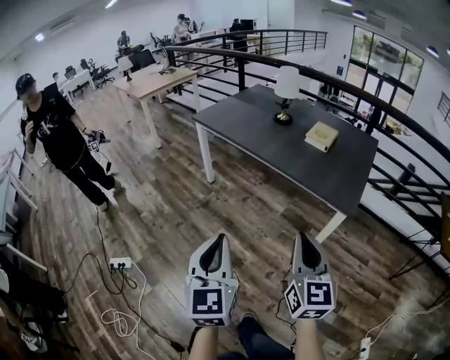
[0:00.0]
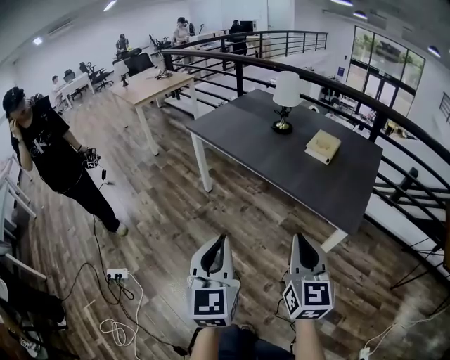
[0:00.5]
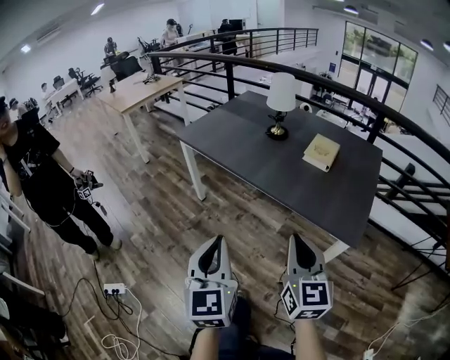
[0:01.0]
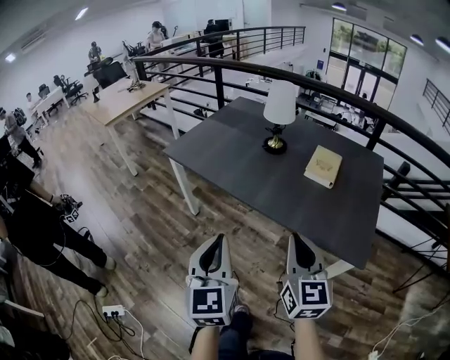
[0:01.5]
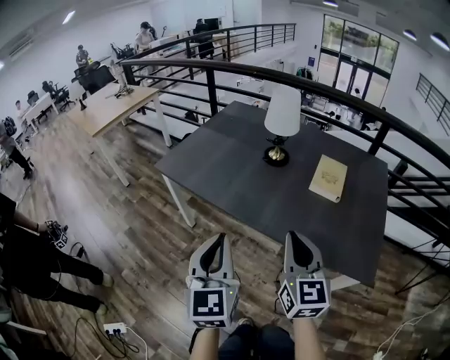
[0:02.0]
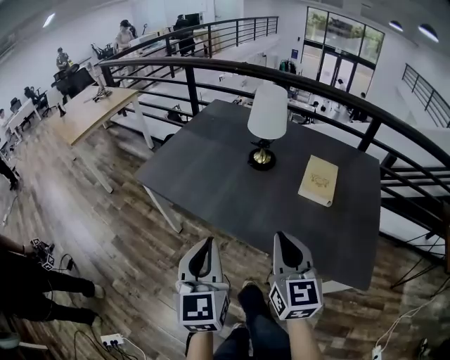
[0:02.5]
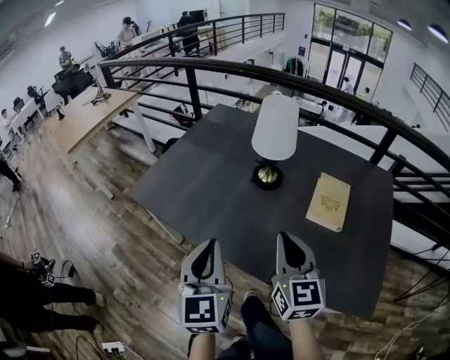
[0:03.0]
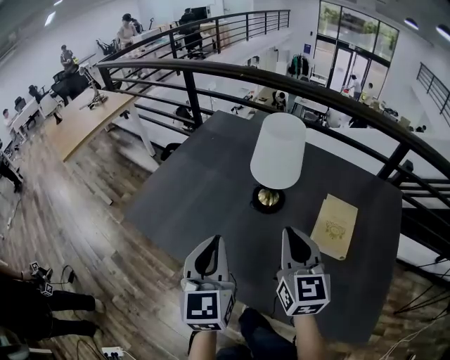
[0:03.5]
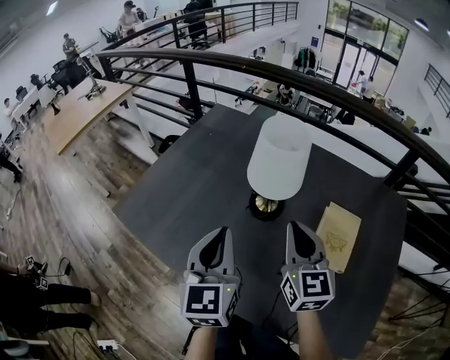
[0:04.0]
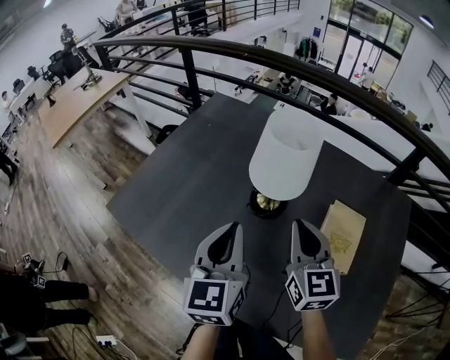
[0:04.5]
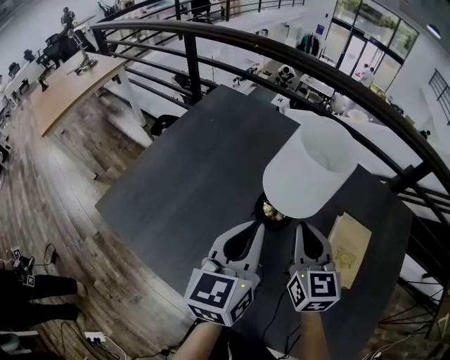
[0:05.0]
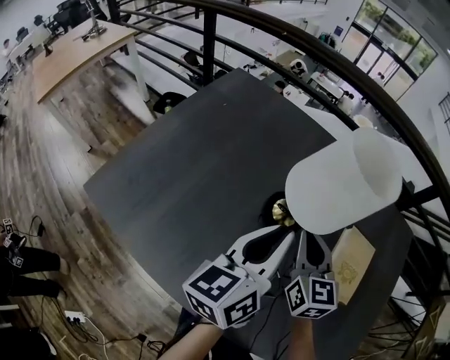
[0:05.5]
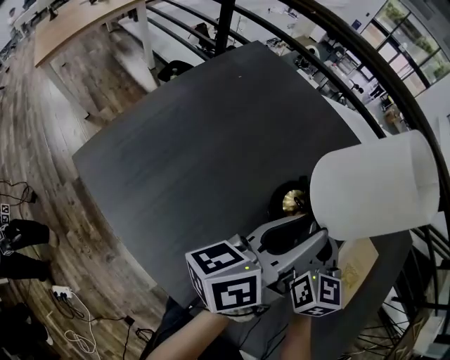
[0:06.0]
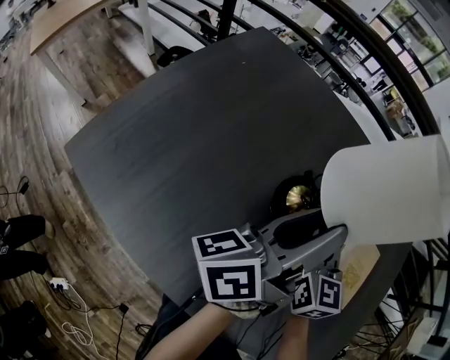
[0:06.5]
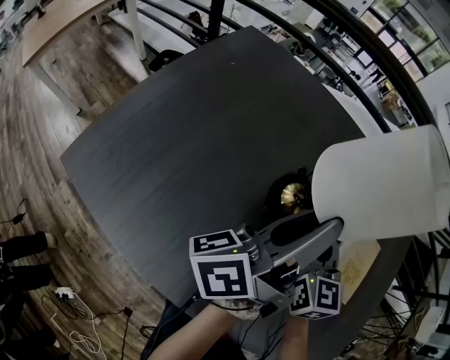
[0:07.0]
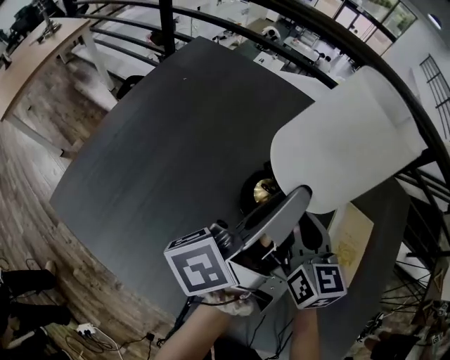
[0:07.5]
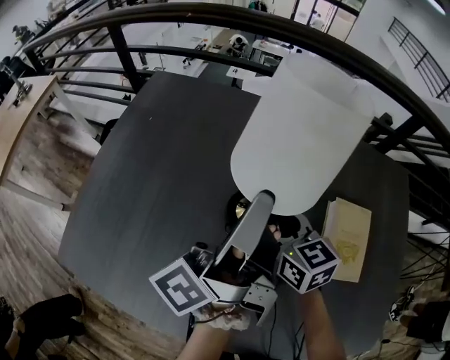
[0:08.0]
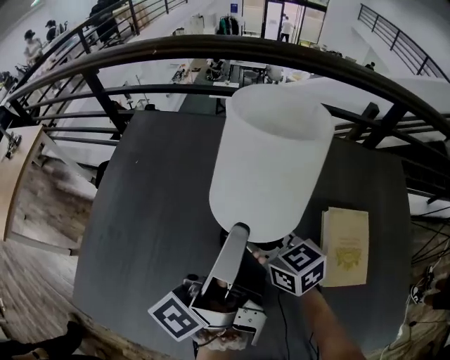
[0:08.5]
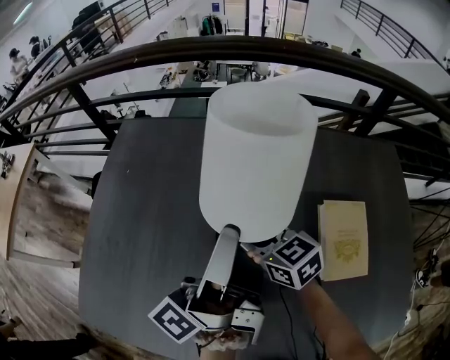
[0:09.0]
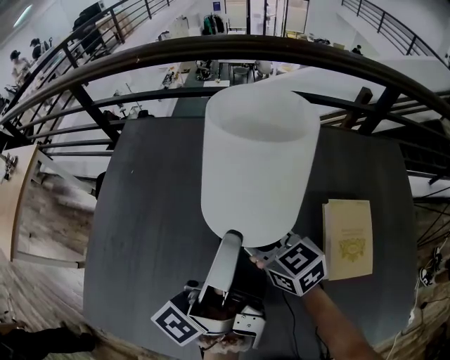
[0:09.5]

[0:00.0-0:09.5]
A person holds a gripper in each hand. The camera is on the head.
0:00.0 to 0:02.0: Both grippers are carried forward, some 40 cm.
0:02.0 to 0:04.0: The grippers both shift forward by about 35 cm.
0:04.0 to 0:05.5: The left gripper goes some 15 cm forward, to the right and downward, and rotates roughly 40 degrees; the right gripper shifts approximately 15 cm downward and forward.
0:05.5 to 0:07.5: The right gripper changes place by approximately 5 cm. The left gripper travels forward by about 10 cm, and rotates around the line of its fingers by about 40 degrees, counterclockwise from behind.
0:07.5 to 0:09.5: The right gripper heads downward, to the left and forward, covering approximately 15 cm, and opens its fingers; the left gripper changes place by roughly 5 cm.

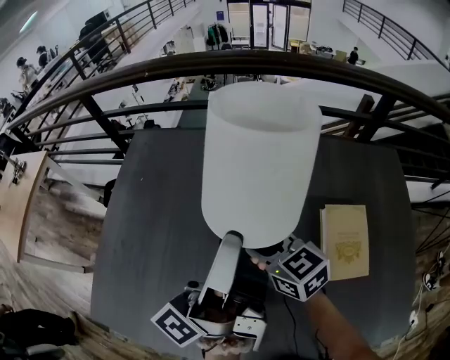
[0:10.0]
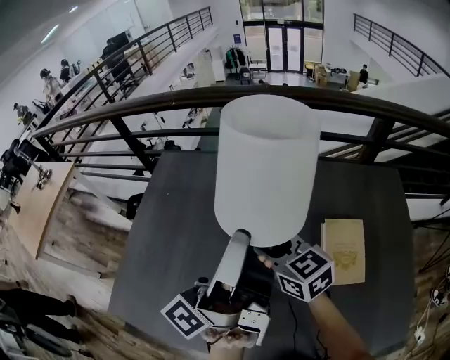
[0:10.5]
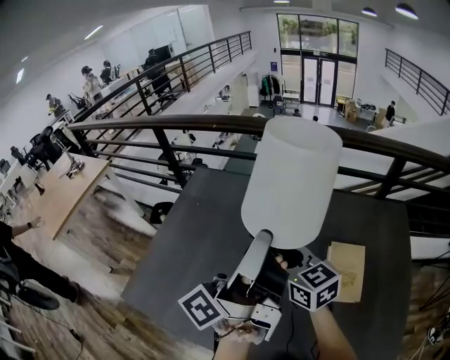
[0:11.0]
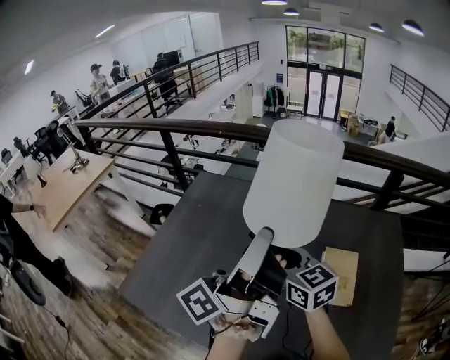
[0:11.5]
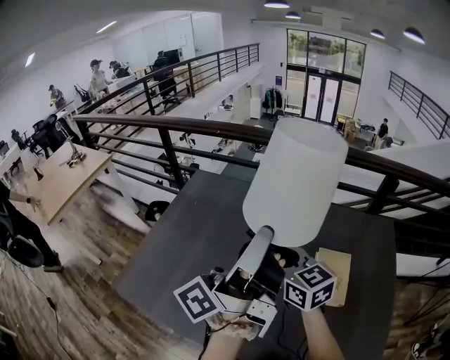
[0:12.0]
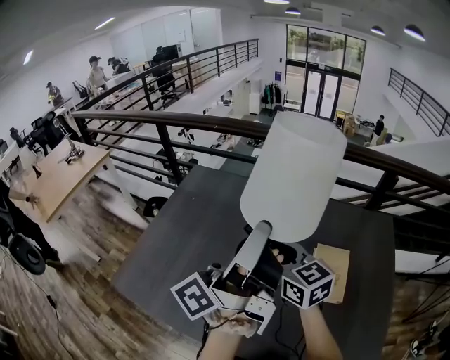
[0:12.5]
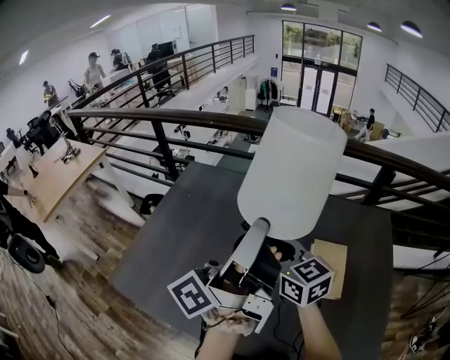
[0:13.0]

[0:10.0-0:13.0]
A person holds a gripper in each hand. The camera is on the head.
0:10.0 to 0:11.5: The right gripper heads upward, covering about 15 cm. Meanwhile the left gripper travels upward and backward by approximately 20 cm.
0:11.5 to 0:13.0: There are only small adjustments of the grippers.

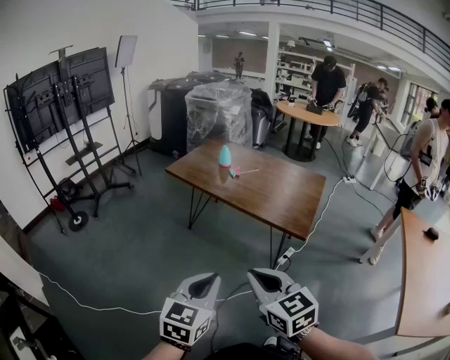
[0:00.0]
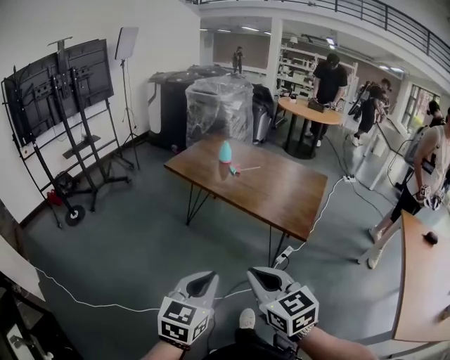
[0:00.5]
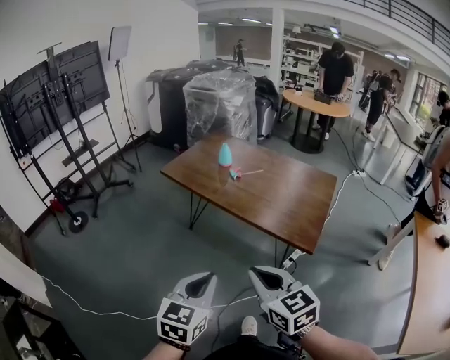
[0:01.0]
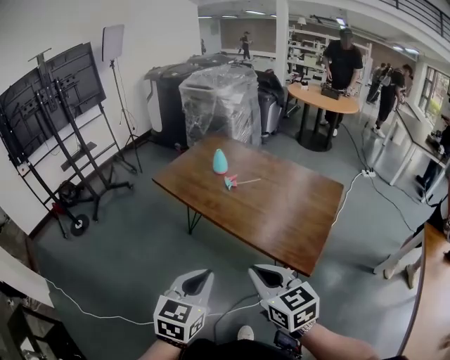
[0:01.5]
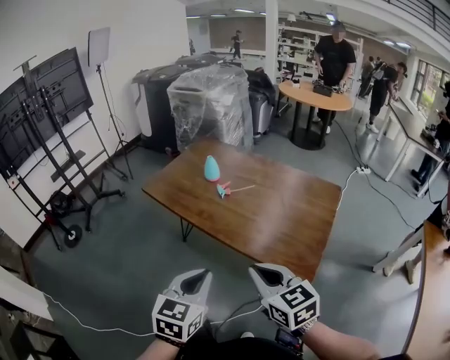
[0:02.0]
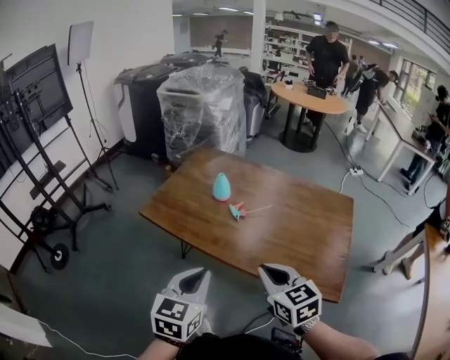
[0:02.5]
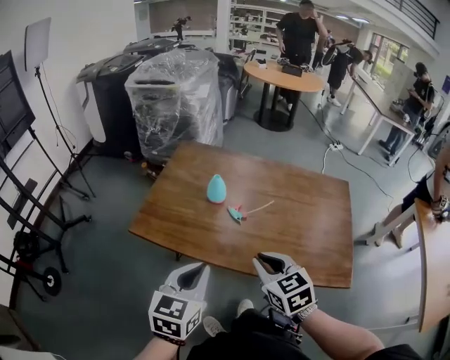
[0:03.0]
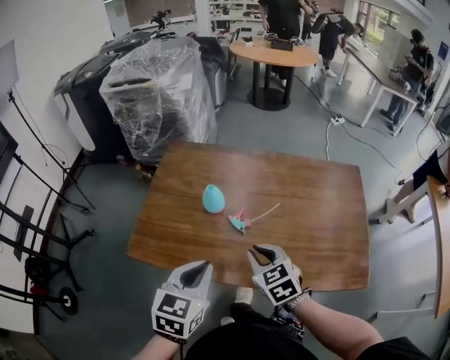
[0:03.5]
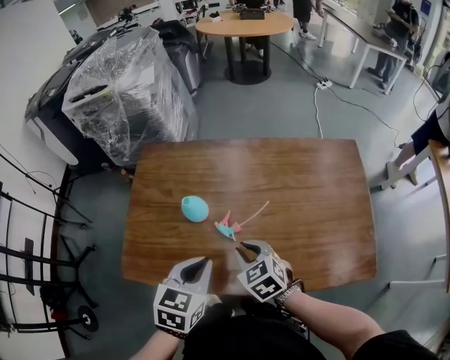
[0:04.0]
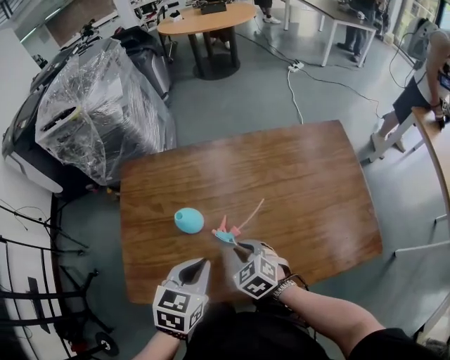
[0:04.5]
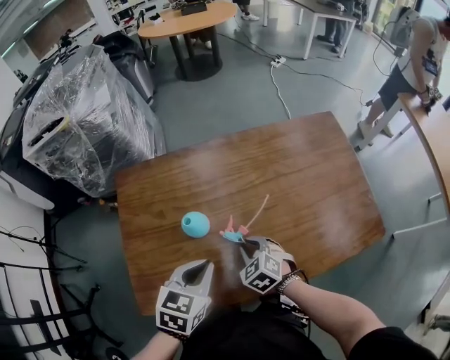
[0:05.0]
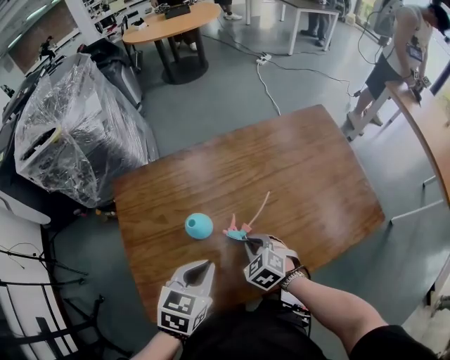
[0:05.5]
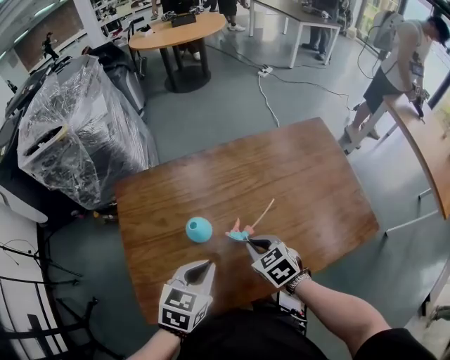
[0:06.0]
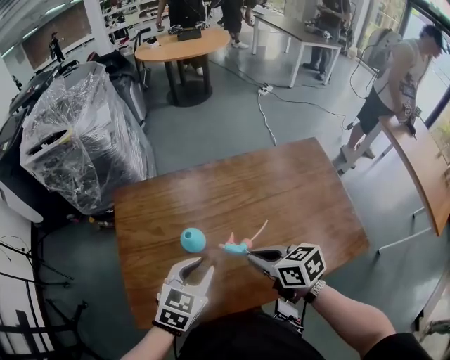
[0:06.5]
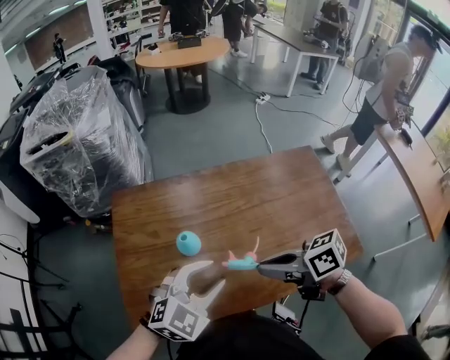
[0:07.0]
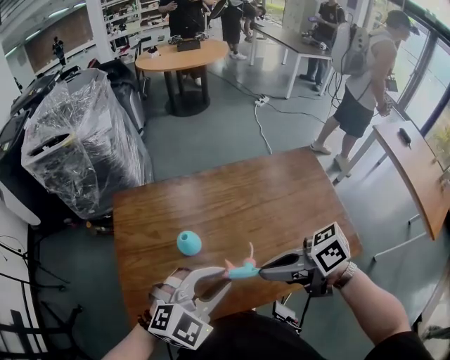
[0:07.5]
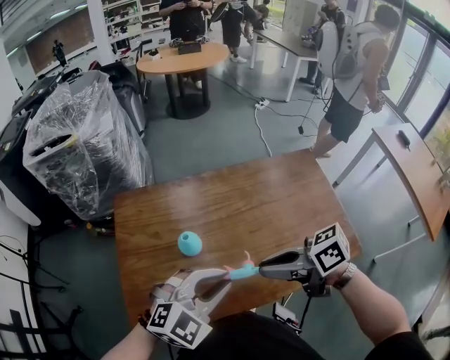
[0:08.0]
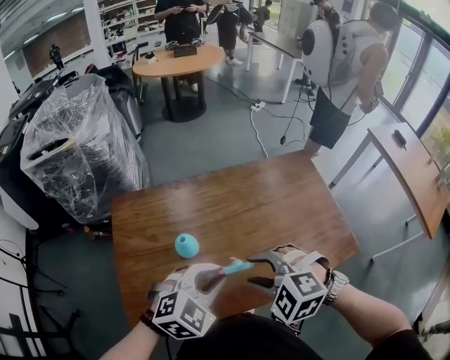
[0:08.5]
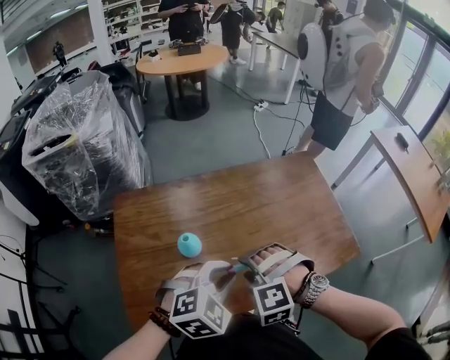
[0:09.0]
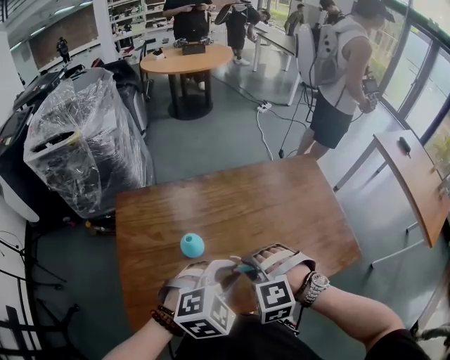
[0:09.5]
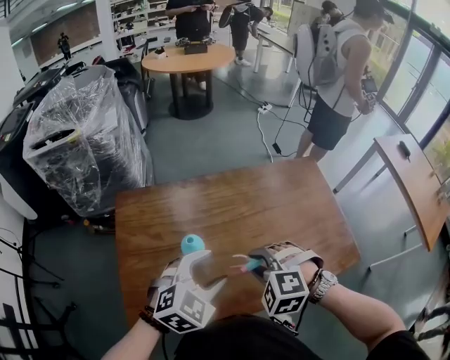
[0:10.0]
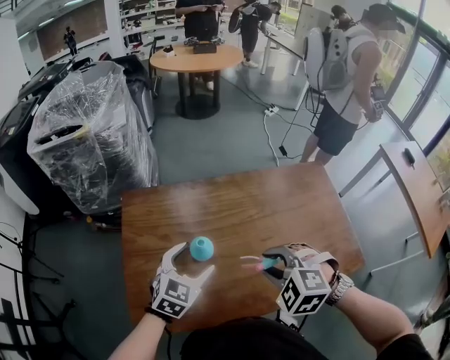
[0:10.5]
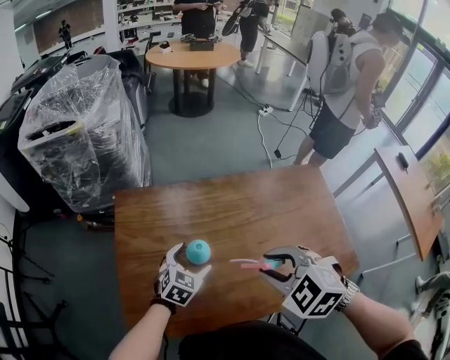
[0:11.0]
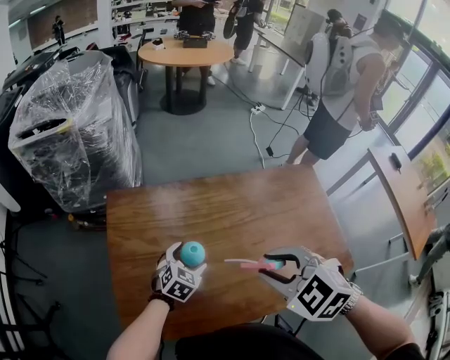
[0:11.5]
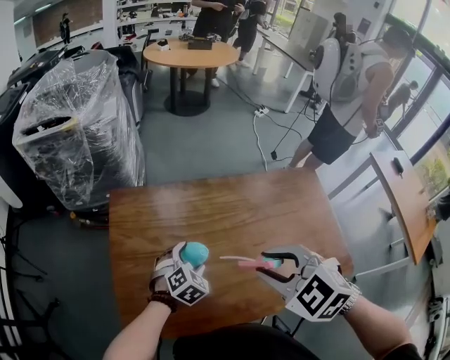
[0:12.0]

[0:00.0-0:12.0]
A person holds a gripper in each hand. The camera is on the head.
0:00.0 to 0:02.0: Both grippers move forward, some 30 cm.
0:02.0 to 0:04.0: The left gripper ends up approximately 40 cm from where it was, and changes its angle by about 30 degrees; the right gripper changes place by some 40 cm, and changes its angle by about 30 degrees.
0:04.0 to 0:06.0: The left gripper changes place by roughly 10 cm, and rotates roughly 20 degrees, while the right gripper swivels roughly 20 degrees.
0:06.0 to 0:08.0: The left gripper is displaced upward by about 10 cm, and rotates around the line of its fingers by roughly 50 degrees, clockwise from behind, while the right gripper travels upward by roughly 20 cm, and swivels some 50 degrees.
0:08.0 to 0:10.0: The left gripper moves approximately 5 cm, and opens its fingers; the right gripper travels downward by approximately 5 cm, tips its fingers downward by some 40 degrees, and opens its fingers.
0:10.0 to 0:12.0: The right gripper heads upward, covering roughly 10 cm, and swivels about 30 degrees, while the left gripper shifts about 20 cm downward and forward, and rotates approximately 20 degrees.

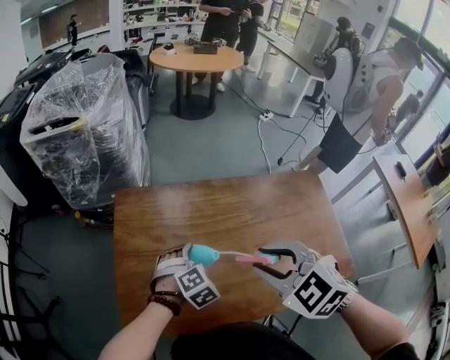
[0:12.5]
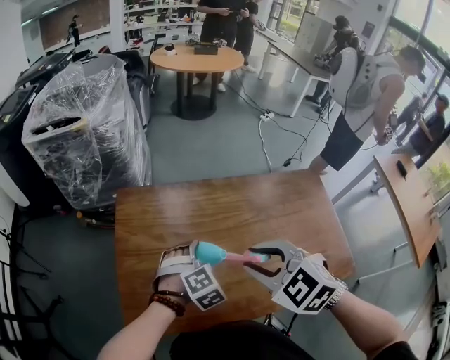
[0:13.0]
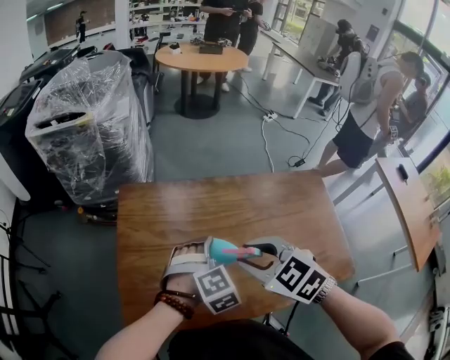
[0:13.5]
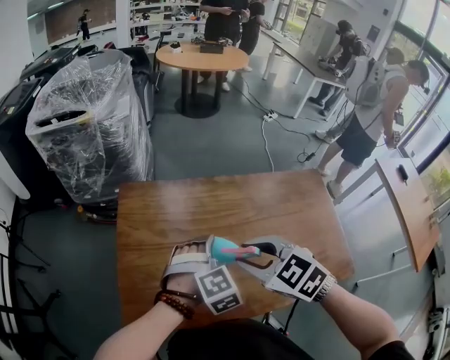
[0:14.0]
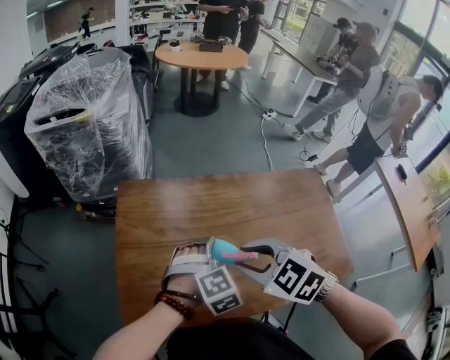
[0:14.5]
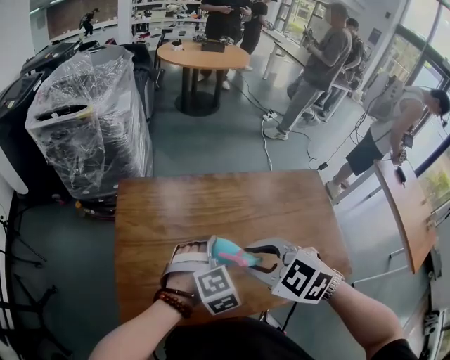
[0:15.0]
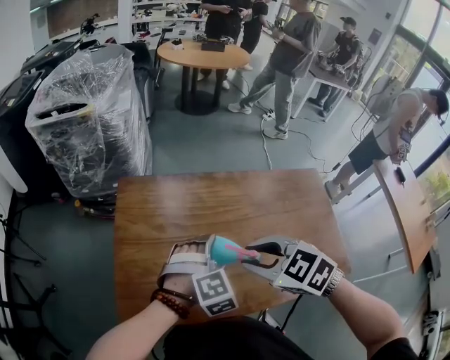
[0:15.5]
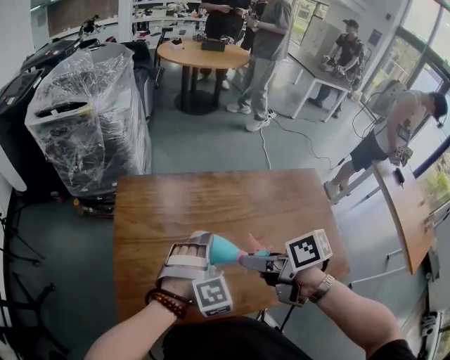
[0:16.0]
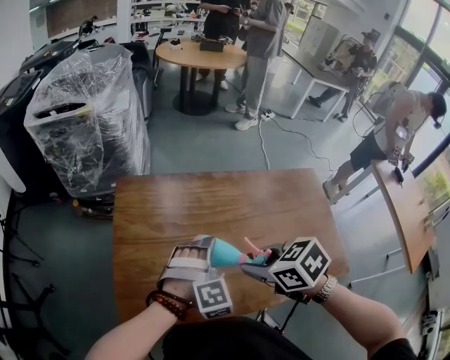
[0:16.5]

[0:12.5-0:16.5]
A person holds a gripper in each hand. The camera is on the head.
0:12.5 to 0:14.5: The left gripper travels upward by roughly 5 cm; the right gripper changes place by some 5 cm.
0:14.5 to 0:16.5: The right gripper rotates some 30 degrees.
